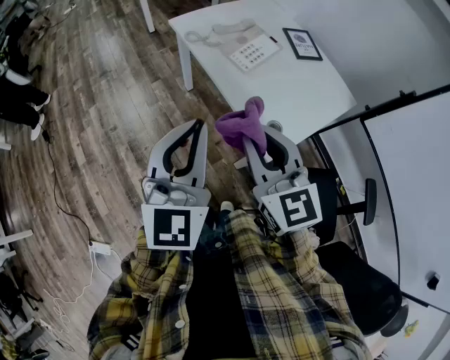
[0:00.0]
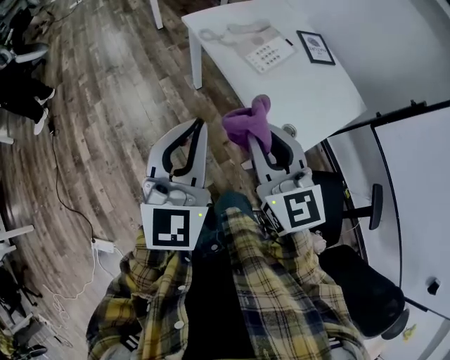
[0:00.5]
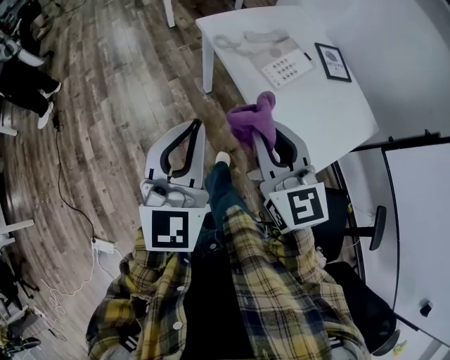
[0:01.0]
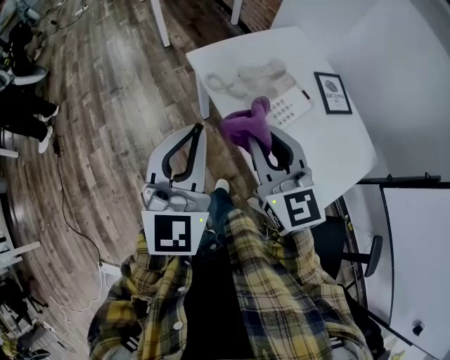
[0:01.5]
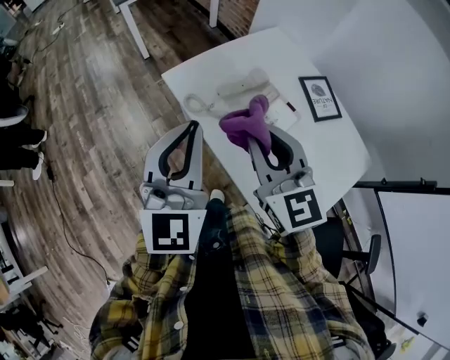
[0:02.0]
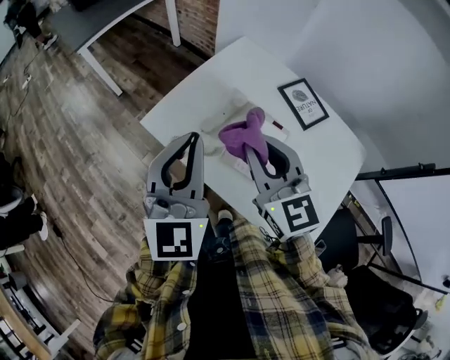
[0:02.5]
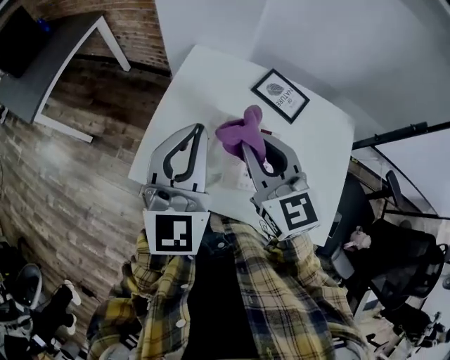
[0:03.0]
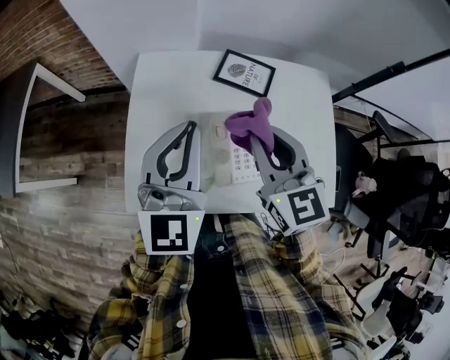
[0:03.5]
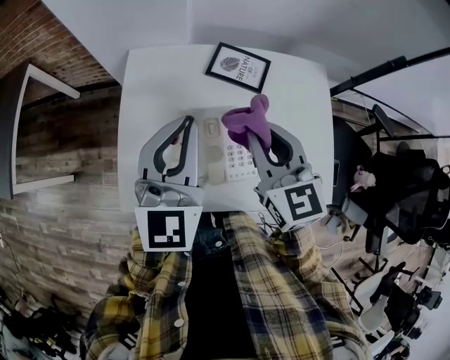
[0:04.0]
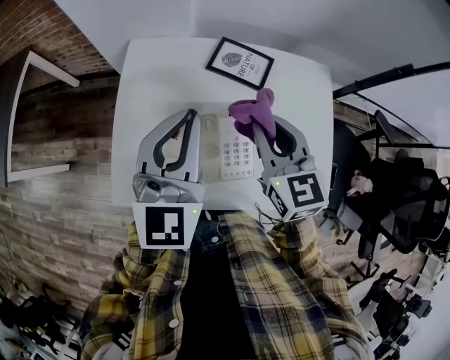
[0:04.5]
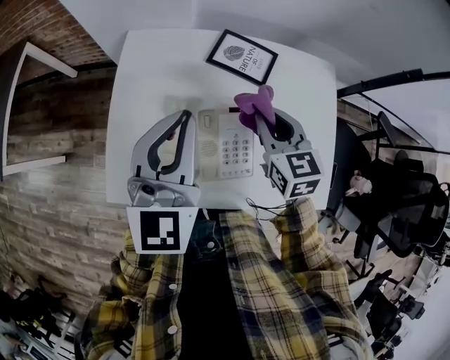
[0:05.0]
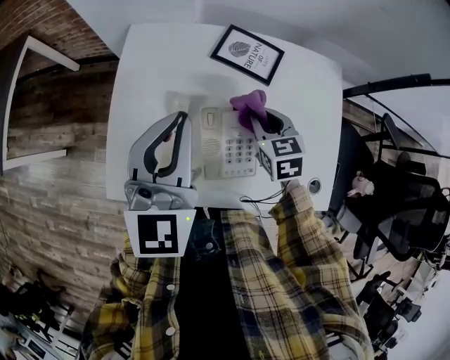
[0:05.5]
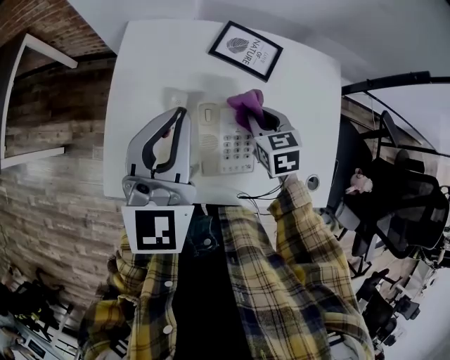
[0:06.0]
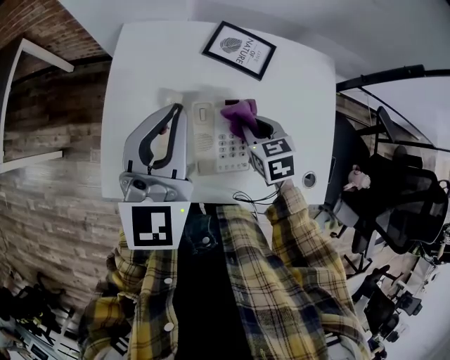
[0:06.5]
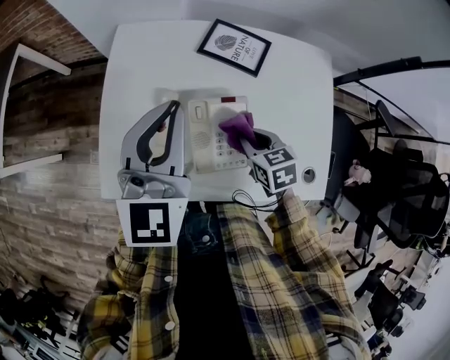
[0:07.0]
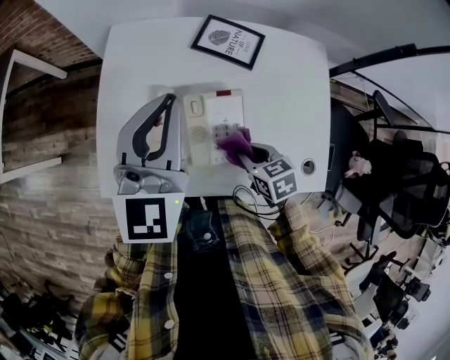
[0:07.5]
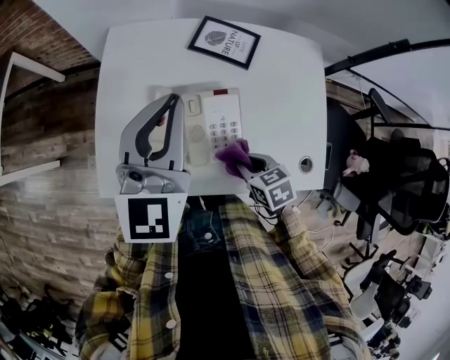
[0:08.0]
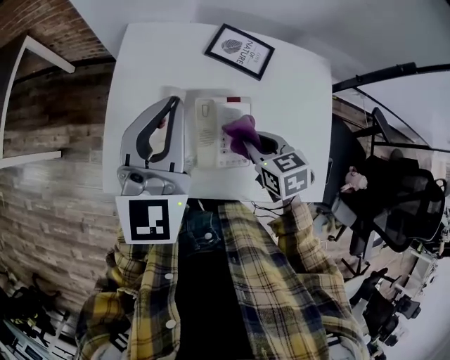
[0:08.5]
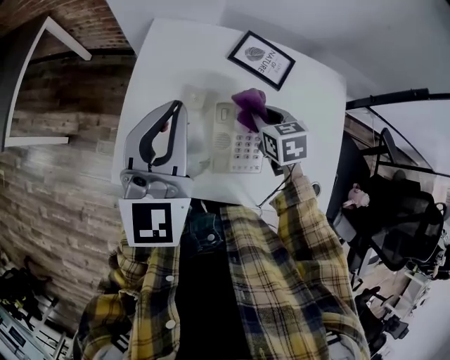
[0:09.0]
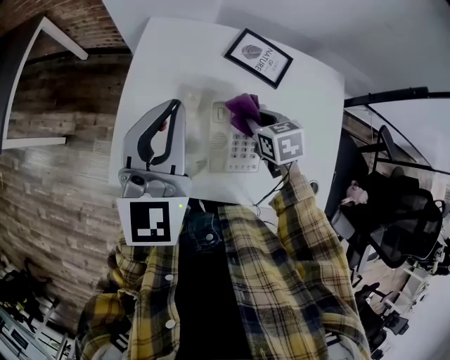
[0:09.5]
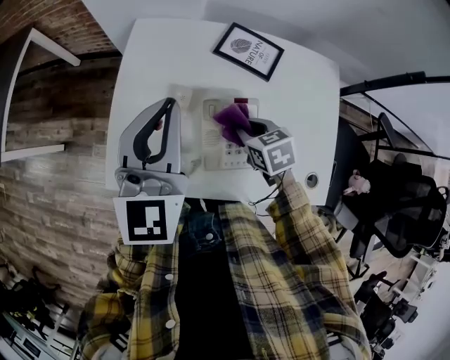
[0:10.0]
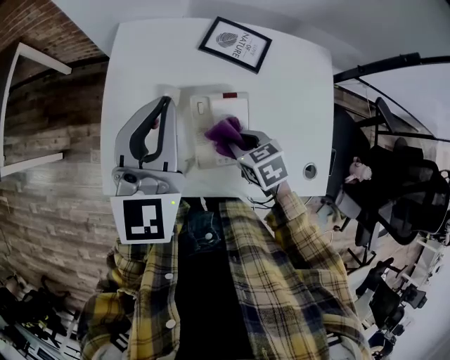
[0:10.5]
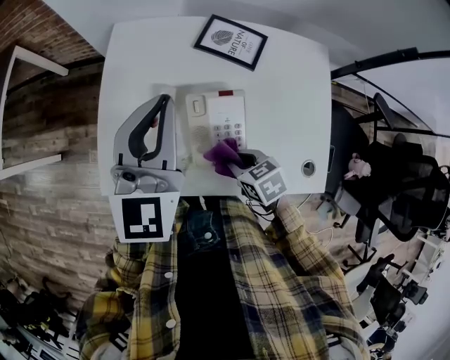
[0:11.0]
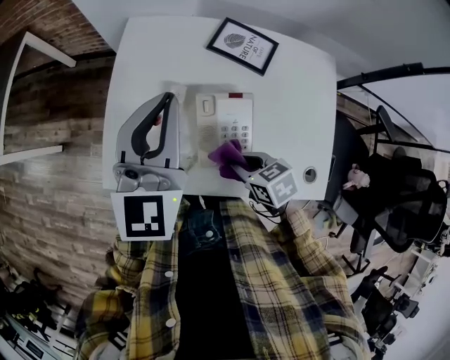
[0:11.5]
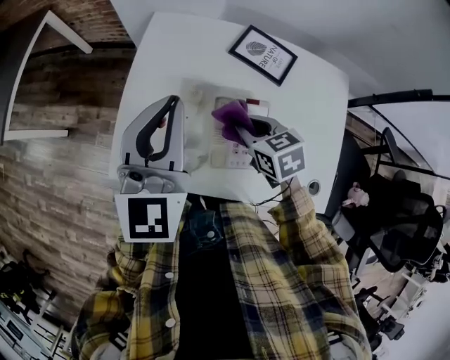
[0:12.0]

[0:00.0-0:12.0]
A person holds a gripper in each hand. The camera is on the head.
0:00.0 to 0:02.0: The grippers both shift forward by roughly 35 cm.
0:02.0 to 0:04.0: The left gripper shifts by roughly 30 cm, and turns by roughly 60 degrees. Meanwhile the right gripper shifts by approximately 20 cm, and changes its angle by approximately 60 degrees.
0:04.0 to 0:06.0: The right gripper heads downward, covering approximately 20 cm, and turns by about 30 degrees.
0:06.0 to 0:08.0: The right gripper shifts approximately 15 cm backward.
0:08.0 to 0:10.0: The right gripper travels forward by about 15 cm. The left gripper shifts by roughly 5 cm.
0:10.0 to 0:12.0: The right gripper moves some 10 cm backward and comes back.

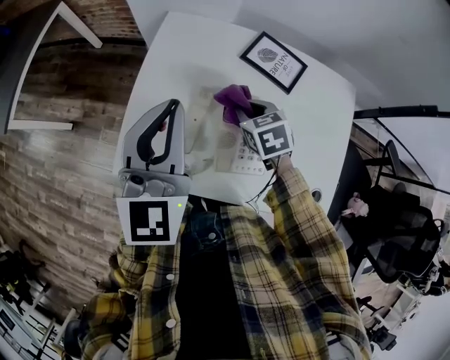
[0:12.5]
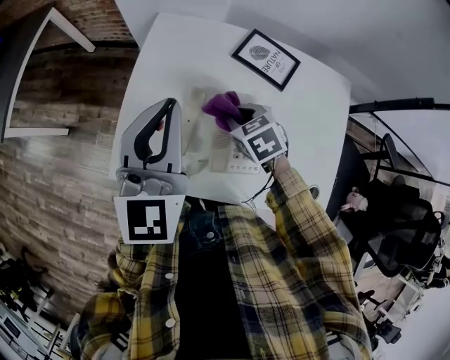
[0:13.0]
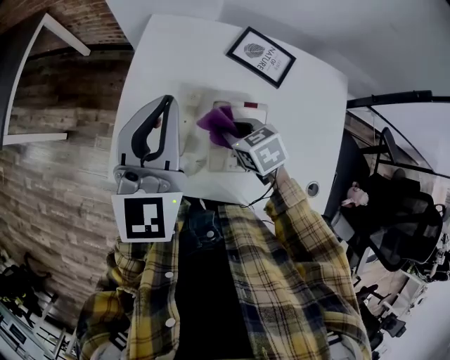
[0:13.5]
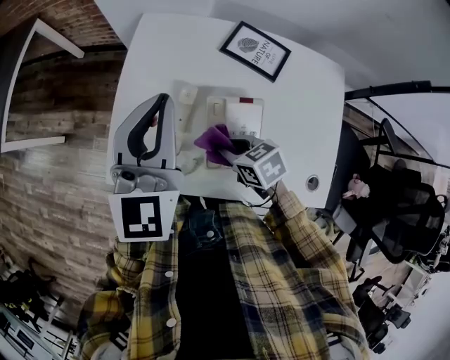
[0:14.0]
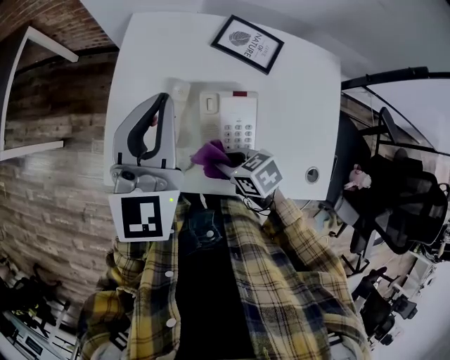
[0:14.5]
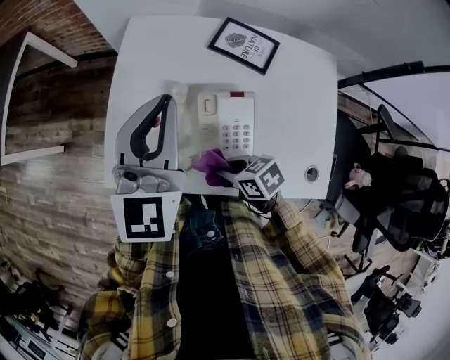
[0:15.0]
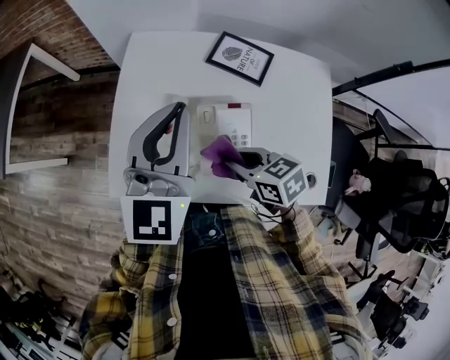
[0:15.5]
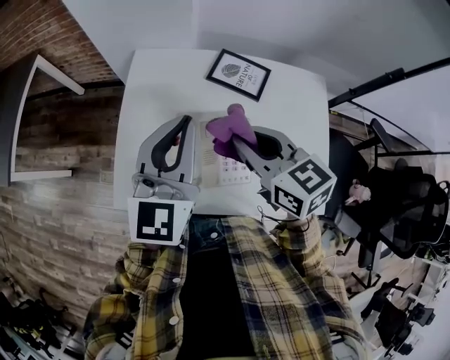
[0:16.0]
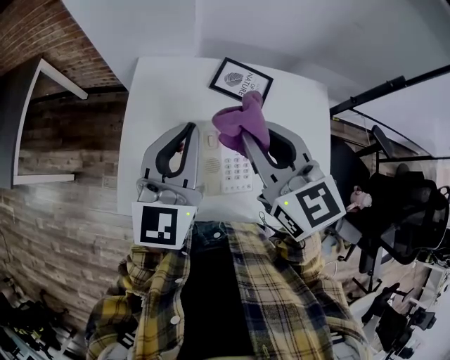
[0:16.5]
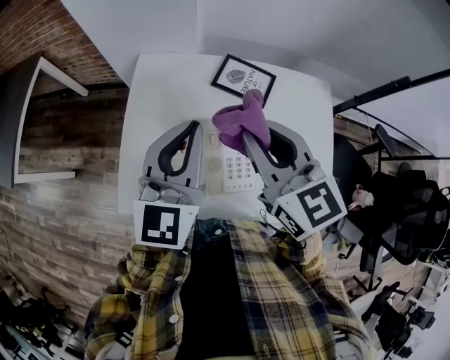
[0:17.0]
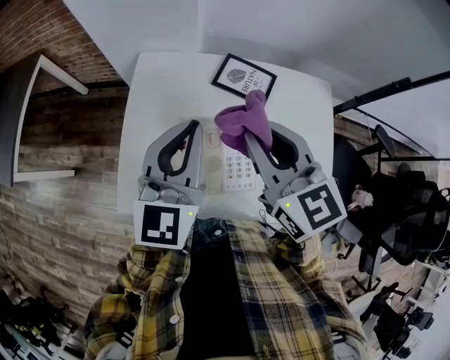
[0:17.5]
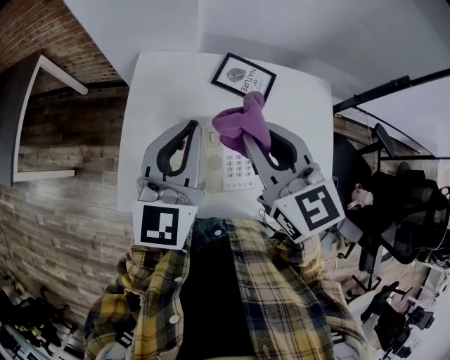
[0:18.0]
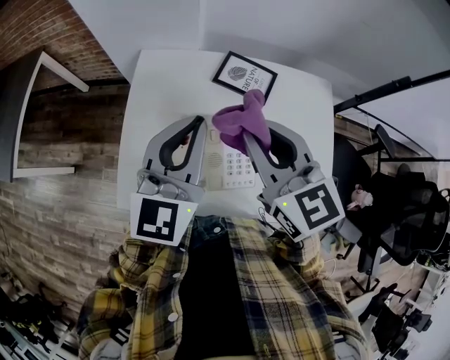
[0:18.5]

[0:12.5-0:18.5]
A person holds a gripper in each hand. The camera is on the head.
0:12.5 to 0:14.5: The right gripper heads backward, covering approximately 15 cm, and changes its angle by some 30 degrees.
0:14.5 to 0:16.5: The right gripper is displaced upward by approximately 30 cm, and tilts its fingers about 40 degrees upward.
0:16.5 to 0:18.5: Neither gripper changes place.

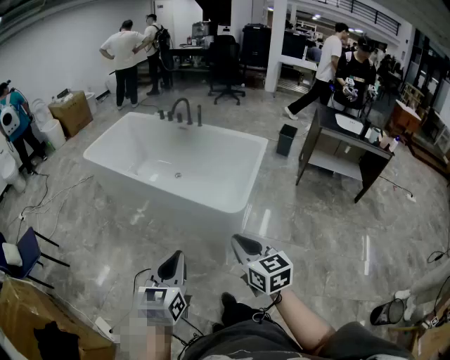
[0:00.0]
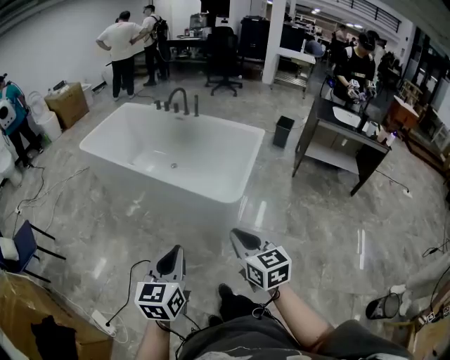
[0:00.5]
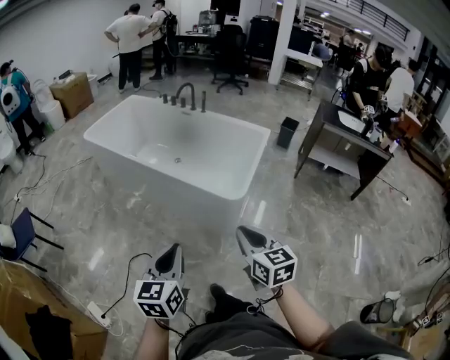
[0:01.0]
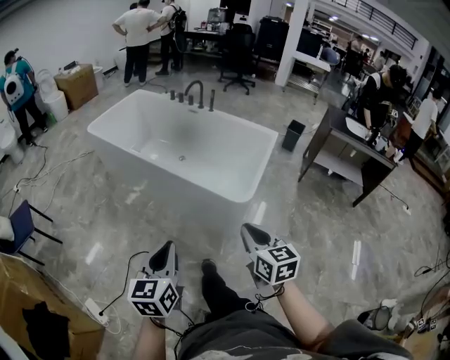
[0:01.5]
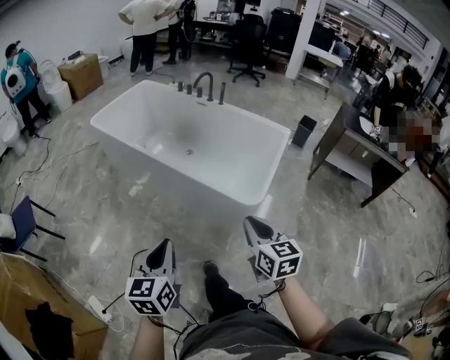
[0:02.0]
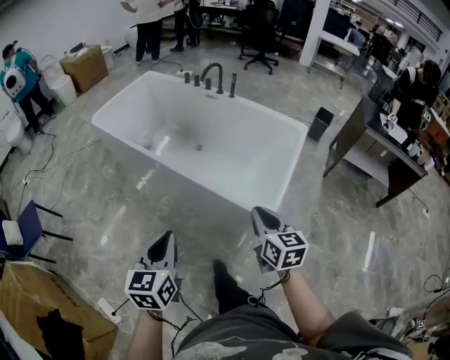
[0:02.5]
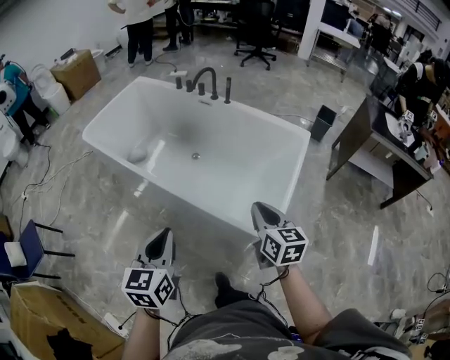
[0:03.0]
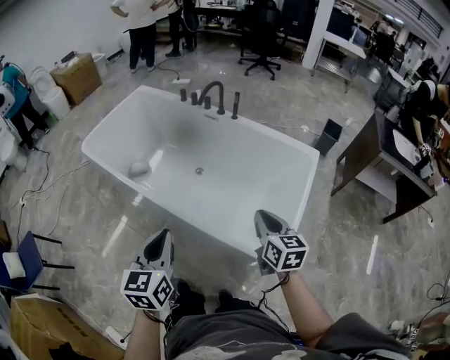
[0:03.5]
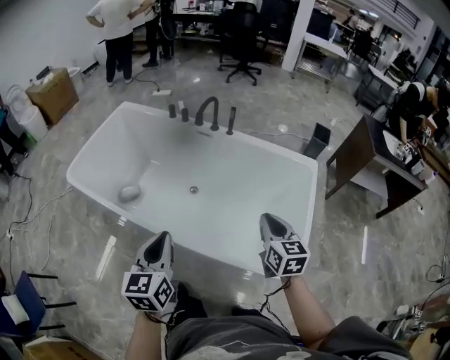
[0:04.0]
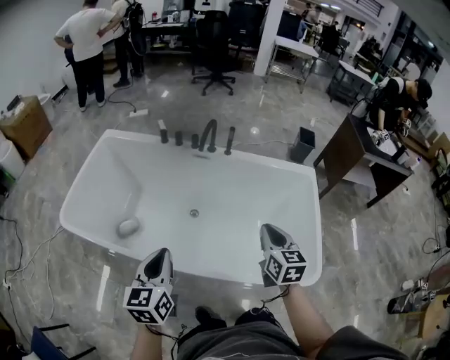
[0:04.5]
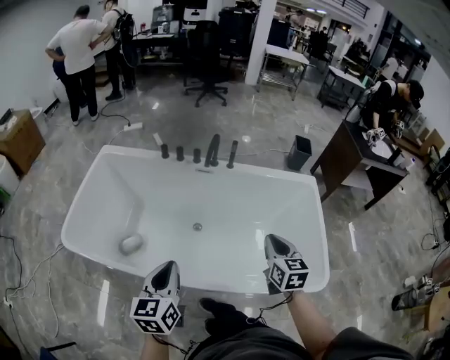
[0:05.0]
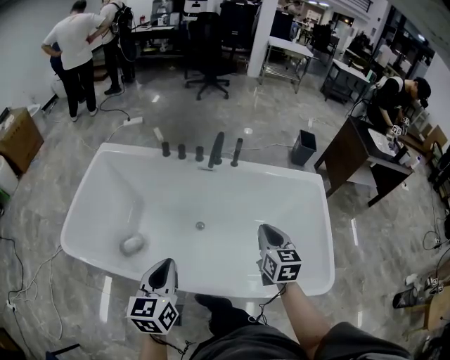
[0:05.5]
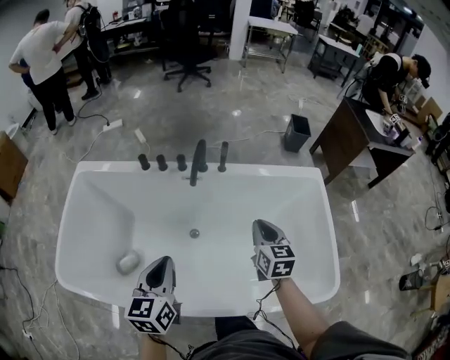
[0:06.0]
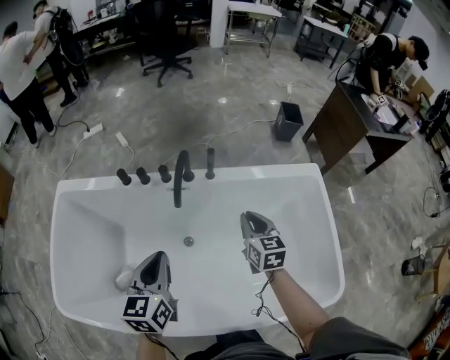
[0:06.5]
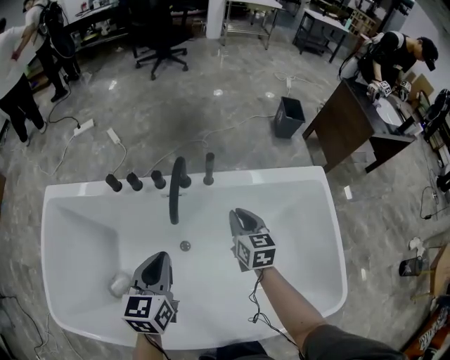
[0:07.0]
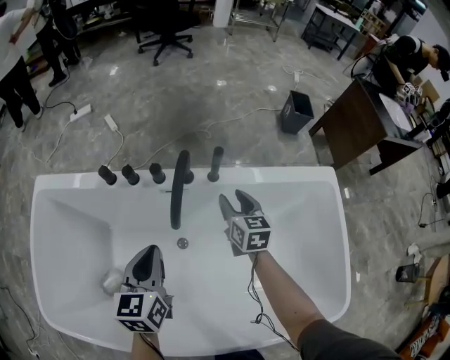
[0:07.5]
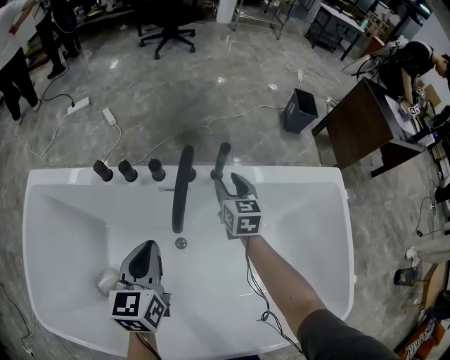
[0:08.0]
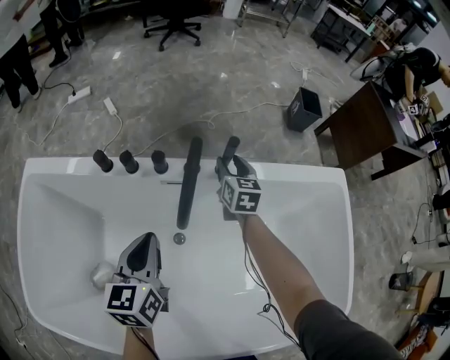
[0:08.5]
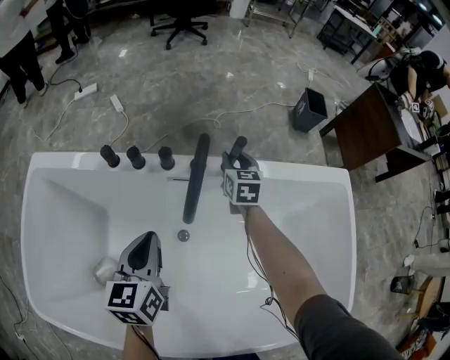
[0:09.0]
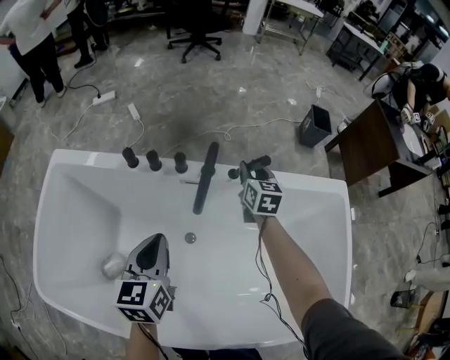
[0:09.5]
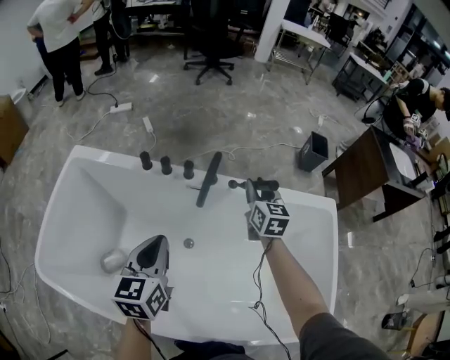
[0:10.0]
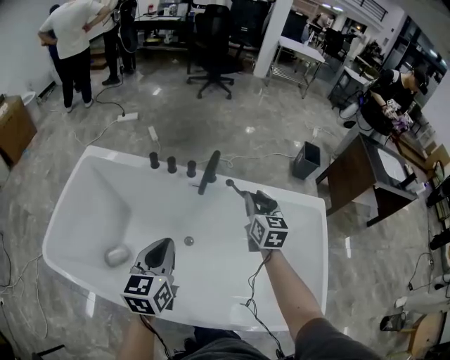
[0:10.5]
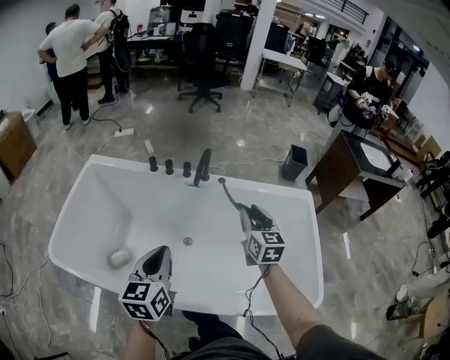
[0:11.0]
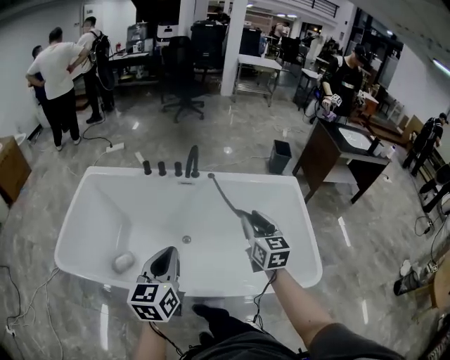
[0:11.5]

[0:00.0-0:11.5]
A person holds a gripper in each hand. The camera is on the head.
0:00.0 to 0:02.0: The right gripper shifts some 10 cm forward. Meanwhile the left gripper travels to the left and forward by roughly 15 cm.
0:02.0 to 0:04.0: The pair of grippers is taken forward, roughly 50 cm.
0:04.0 to 0:06.0: The grippers both shift forward and to the left by roughly 35 cm. The right gripper rotates some 20 degrees; the left gripper rotates approximately 20 degrees.
0:06.0 to 0:07.5: The two grippers go approximately 30 cm forward and downward. The right gripper opens its fingers.
0:07.5 to 0:09.5: The right gripper shifts some 10 cm forward.
0:09.5 to 0:11.5: Both grippers move backward and upward, approximately 50 cm.
